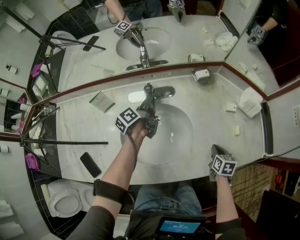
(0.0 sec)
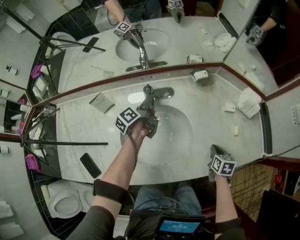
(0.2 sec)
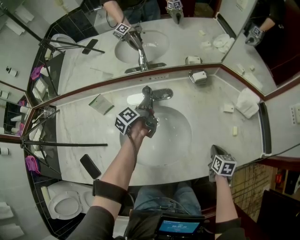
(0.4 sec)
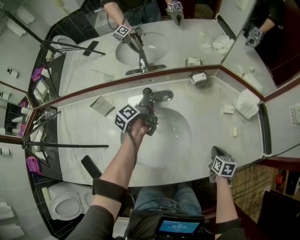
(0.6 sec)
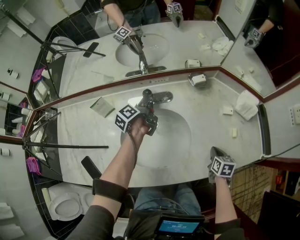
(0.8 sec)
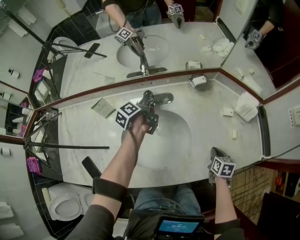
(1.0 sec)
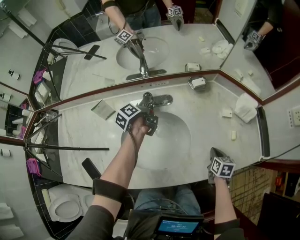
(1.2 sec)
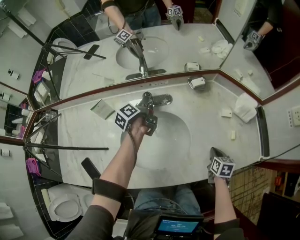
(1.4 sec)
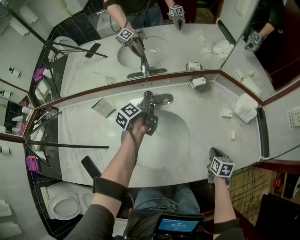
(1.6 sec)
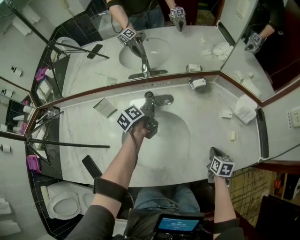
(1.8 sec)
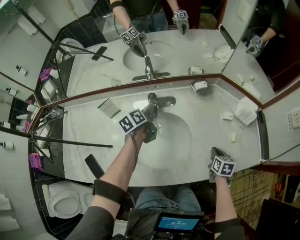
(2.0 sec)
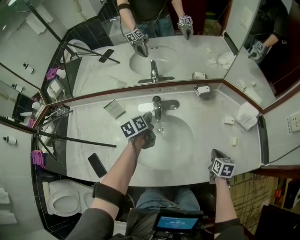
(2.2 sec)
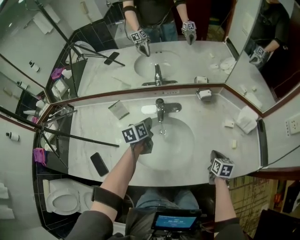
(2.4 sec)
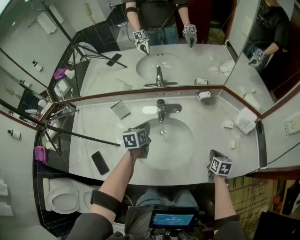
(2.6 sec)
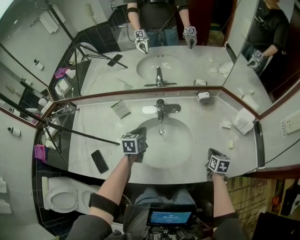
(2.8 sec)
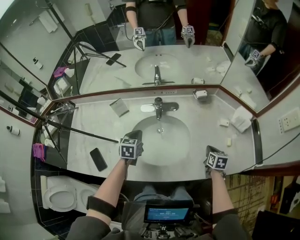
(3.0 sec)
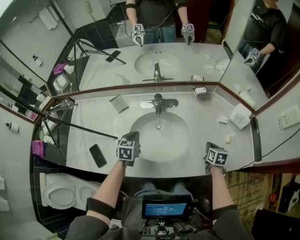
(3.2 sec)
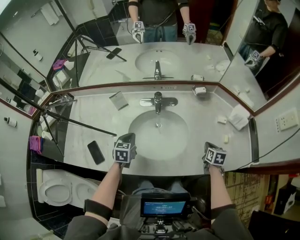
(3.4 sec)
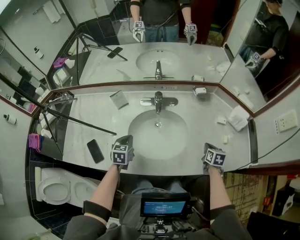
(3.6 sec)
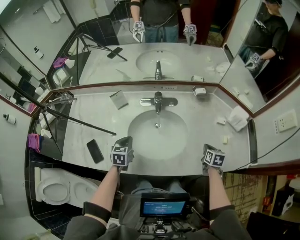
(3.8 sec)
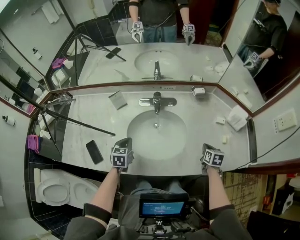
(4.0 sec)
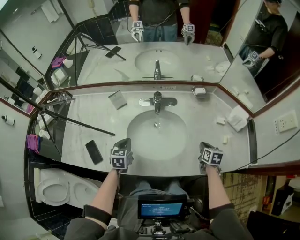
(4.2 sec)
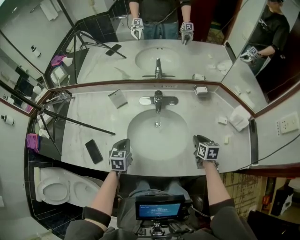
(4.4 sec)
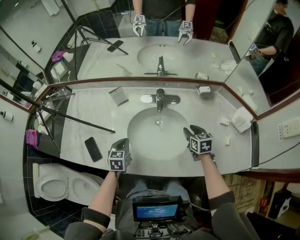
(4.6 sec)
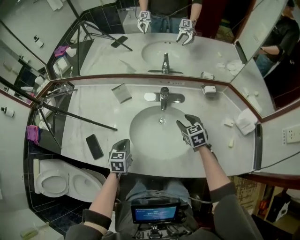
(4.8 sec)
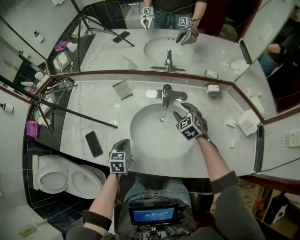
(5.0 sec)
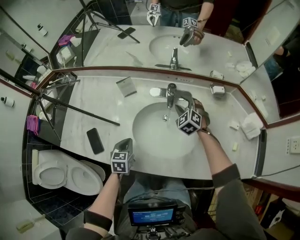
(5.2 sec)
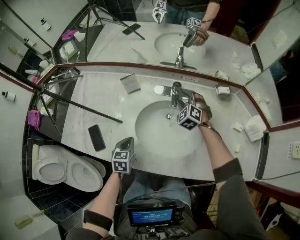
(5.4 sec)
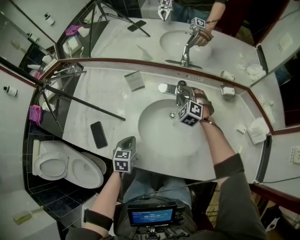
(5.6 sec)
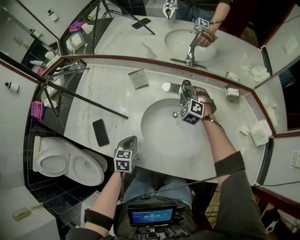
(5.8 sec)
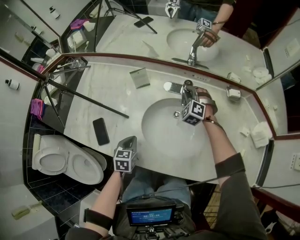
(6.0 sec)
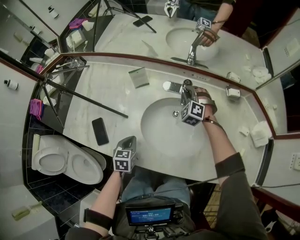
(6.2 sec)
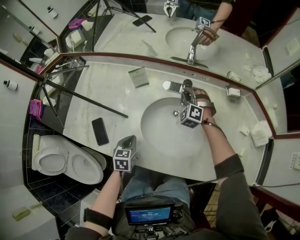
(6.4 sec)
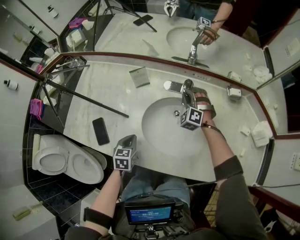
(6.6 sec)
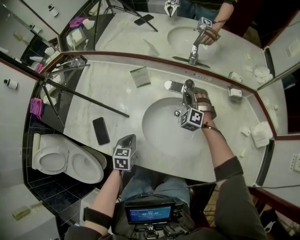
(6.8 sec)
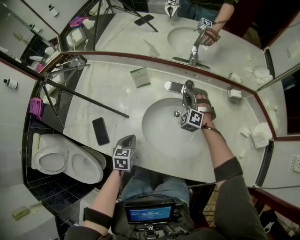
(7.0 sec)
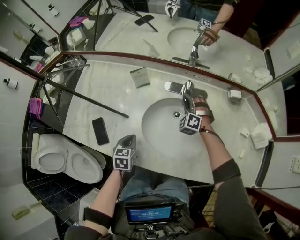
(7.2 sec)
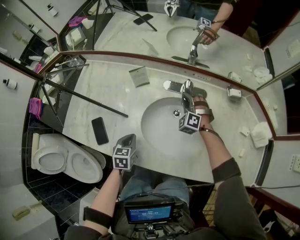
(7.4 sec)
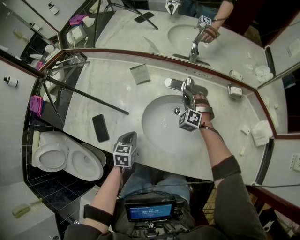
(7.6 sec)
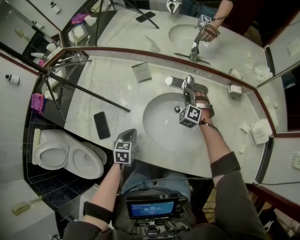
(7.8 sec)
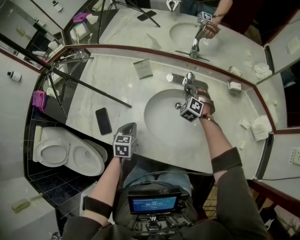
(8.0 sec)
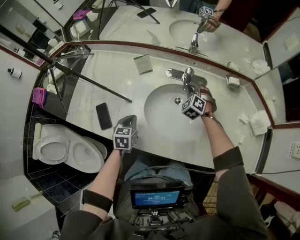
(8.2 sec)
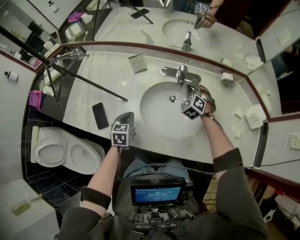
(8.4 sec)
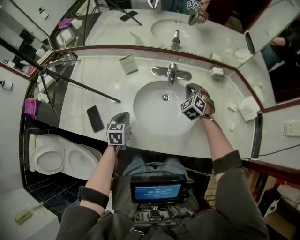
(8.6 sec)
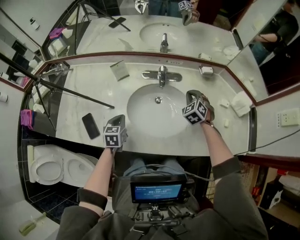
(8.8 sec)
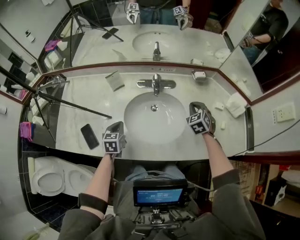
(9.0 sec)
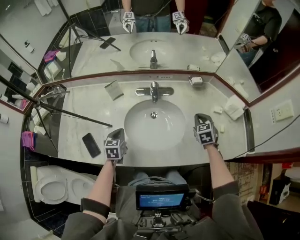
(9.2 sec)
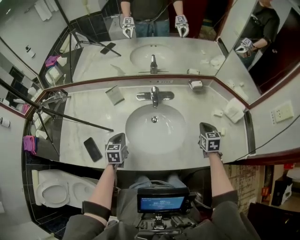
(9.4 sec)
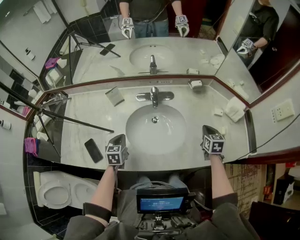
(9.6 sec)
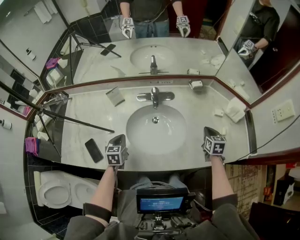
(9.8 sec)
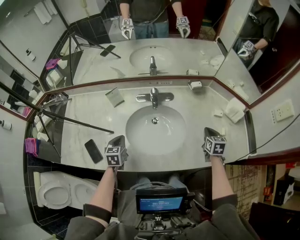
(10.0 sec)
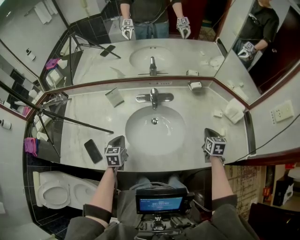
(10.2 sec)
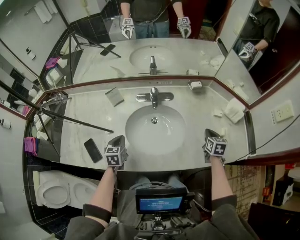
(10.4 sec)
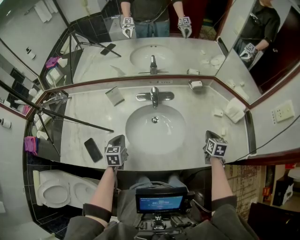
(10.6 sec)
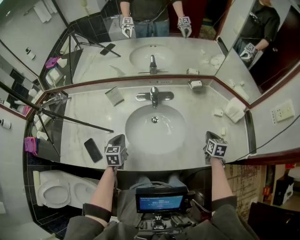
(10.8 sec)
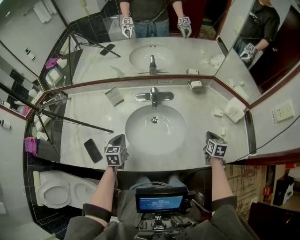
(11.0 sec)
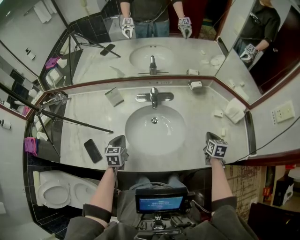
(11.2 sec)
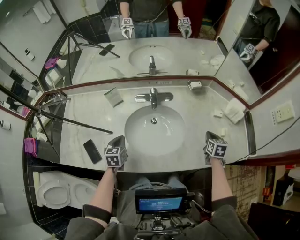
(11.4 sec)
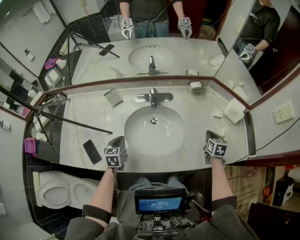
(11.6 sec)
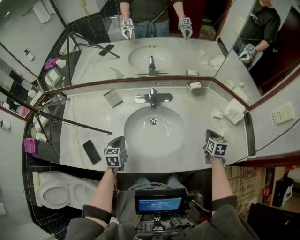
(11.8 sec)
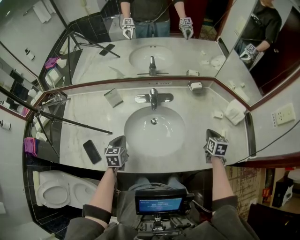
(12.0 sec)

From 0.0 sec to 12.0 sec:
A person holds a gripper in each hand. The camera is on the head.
From 0.0 sec to 1.6 sec: The grippers move only a little.
From 1.6 sec to 3.0 sec: The left gripper moves backward, approximately 20 cm, rolls clockwise, seen from behind, by about 70 degrees, and closes up.
From 3.0 sec to 4.4 sec: The left gripper goes about 10 cm backward and to the left. Meanwhile the right gripper travels to the left by about 5 cm.
From 4.4 sec to 6.0 sec: The right gripper heads forward and to the left, covering about 35 cm, rolls counterclockwise, seen from behind, by roughly 90 degrees, and opens, then closes once more. Meanwhile the left gripper moves downward and to the left, about 5 cm.
From 6.0 sec to 7.6 sec: The grippers stay close to where they were, moving slightly.
From 7.6 sec to 9.0 sec: The right gripper goes some 25 cm to the right and backward, and rolls clockwise, seen from behind, by some 40 degrees; the left gripper is displaced upward by some 5 cm.
From 9.0 sec to 10.4 sec: The right gripper goes approximately 15 cm to the right and backward, and rotates around the line of its fingers by roughly 50 degrees, clockwise from behind.
From 10.4 sec to 12.0 sec: The grippers make only small movements.

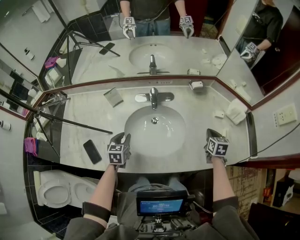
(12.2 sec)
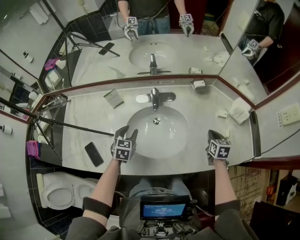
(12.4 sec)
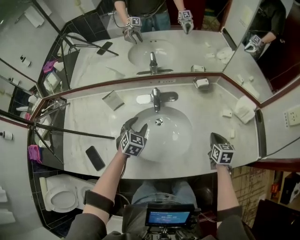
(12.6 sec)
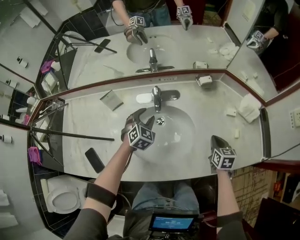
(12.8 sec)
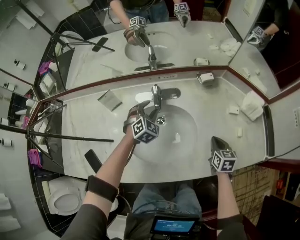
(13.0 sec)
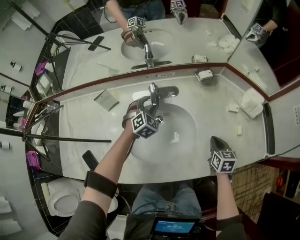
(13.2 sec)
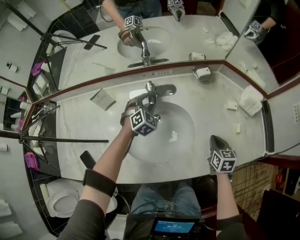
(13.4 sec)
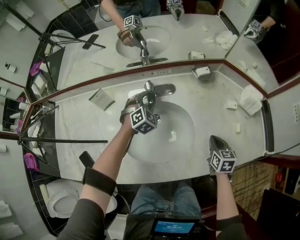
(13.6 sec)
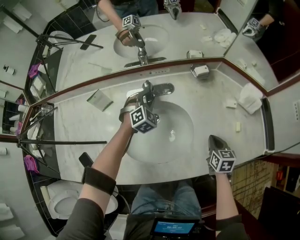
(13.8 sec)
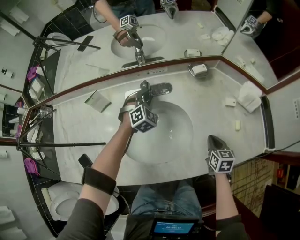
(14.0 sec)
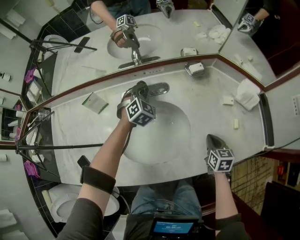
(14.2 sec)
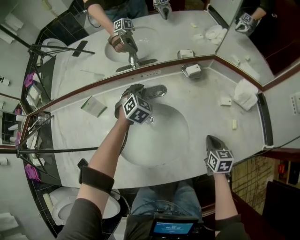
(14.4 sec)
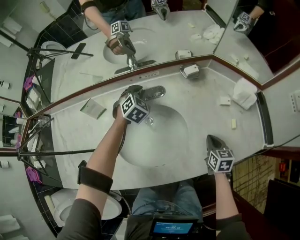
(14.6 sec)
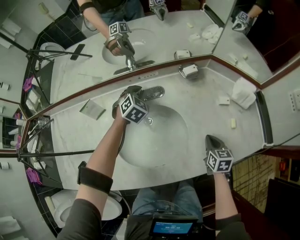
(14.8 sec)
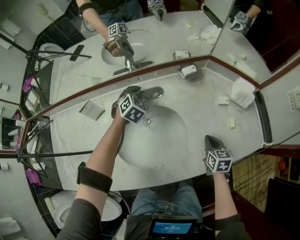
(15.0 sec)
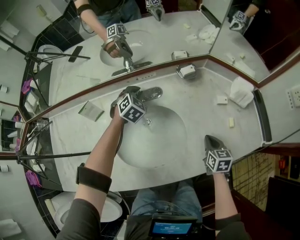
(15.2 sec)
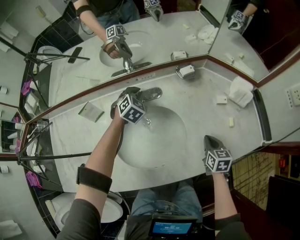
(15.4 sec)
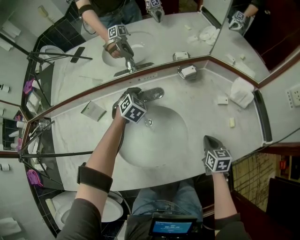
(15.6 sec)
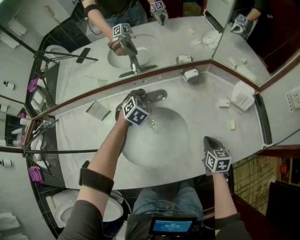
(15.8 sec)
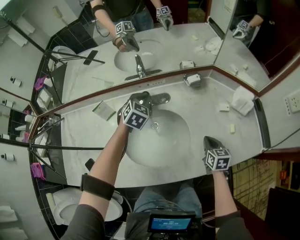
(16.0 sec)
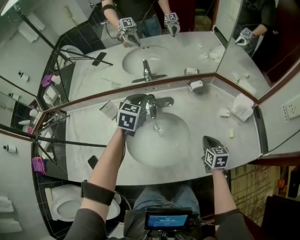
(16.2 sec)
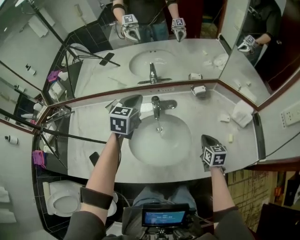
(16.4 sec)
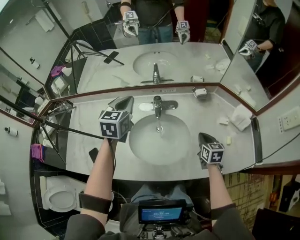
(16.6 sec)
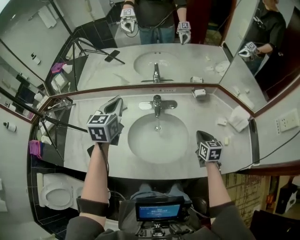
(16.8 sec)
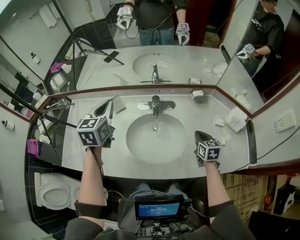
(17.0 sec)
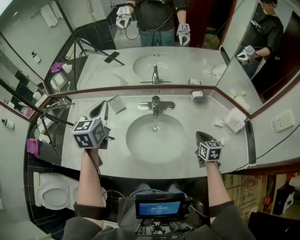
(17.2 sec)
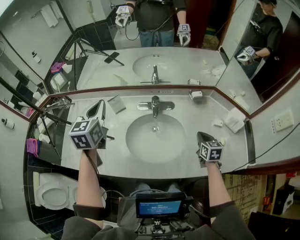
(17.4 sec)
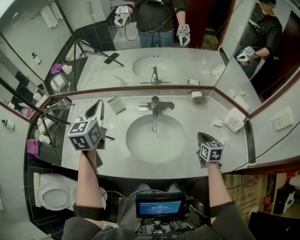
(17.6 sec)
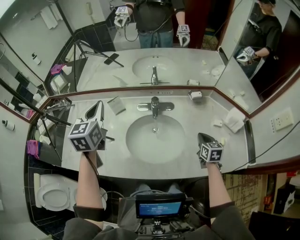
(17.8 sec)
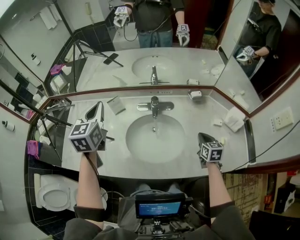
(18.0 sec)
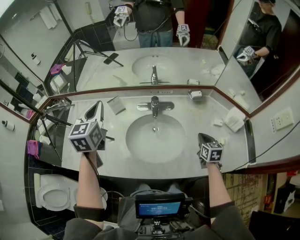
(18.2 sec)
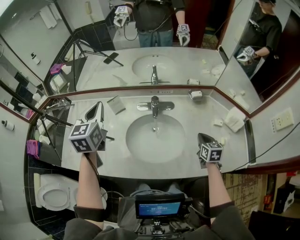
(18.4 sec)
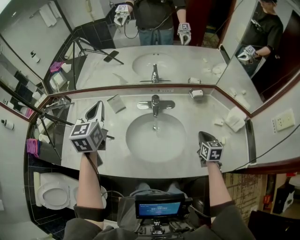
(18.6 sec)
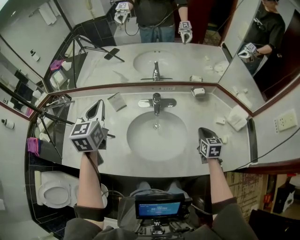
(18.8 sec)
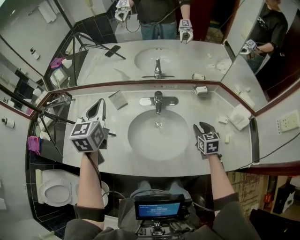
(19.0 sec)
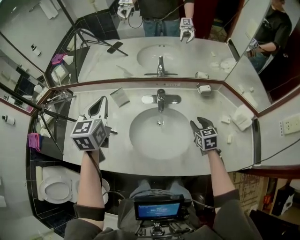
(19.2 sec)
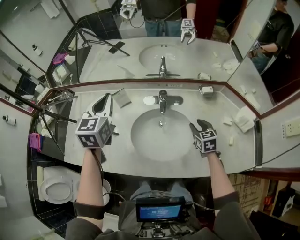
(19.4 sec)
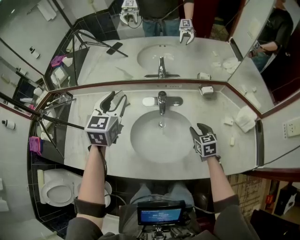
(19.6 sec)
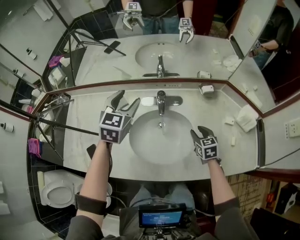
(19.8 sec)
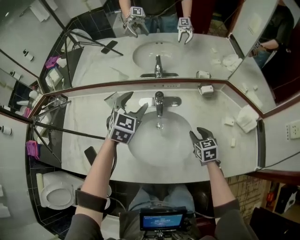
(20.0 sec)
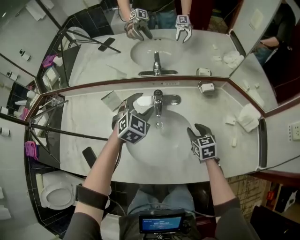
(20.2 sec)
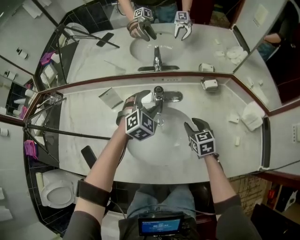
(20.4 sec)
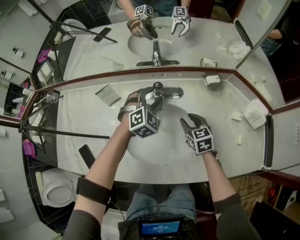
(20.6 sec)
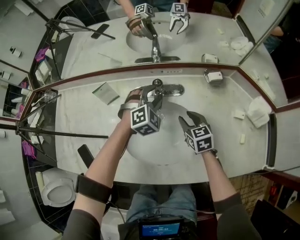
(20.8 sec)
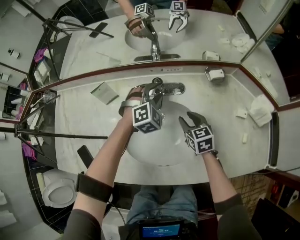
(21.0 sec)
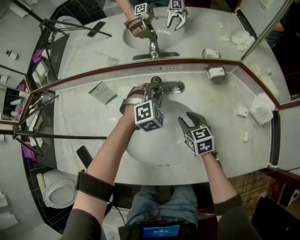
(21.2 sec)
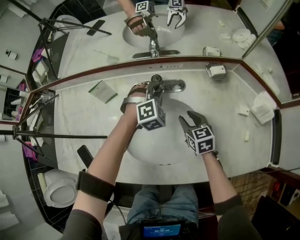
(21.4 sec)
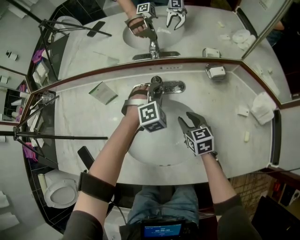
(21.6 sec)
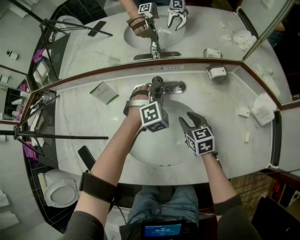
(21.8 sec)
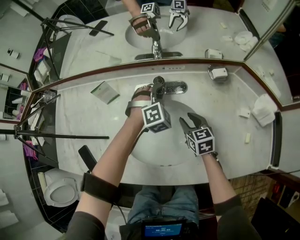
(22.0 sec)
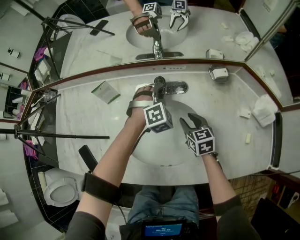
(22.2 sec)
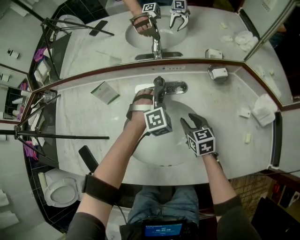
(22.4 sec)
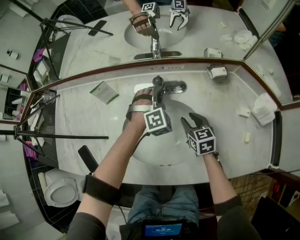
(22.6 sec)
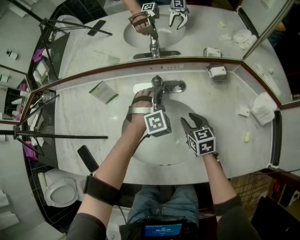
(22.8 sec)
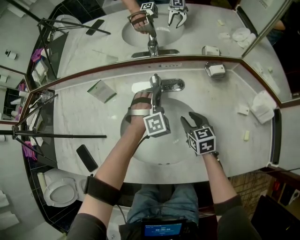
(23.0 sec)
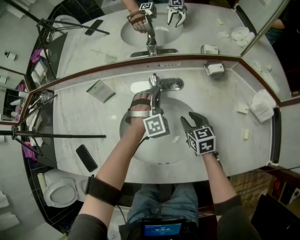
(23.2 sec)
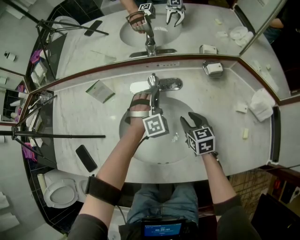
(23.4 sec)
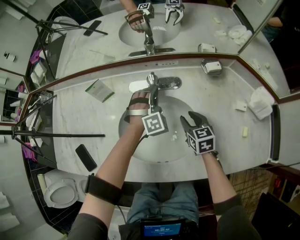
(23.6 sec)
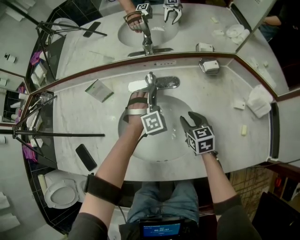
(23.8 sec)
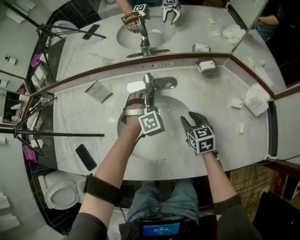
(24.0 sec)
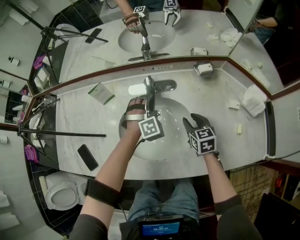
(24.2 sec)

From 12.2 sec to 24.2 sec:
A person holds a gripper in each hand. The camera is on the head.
From 12.2 sec to 13.8 sec: The right gripper moves downward, approximately 5 cm; the left gripper shifts approximately 30 cm forward and to the right, and twists some 60 degrees clockwise, seen from behind.
From 13.8 sec to 15.2 sec: The left gripper shifts by approximately 5 cm, and closes up.
From 15.2 sec to 16.6 sec: The left gripper travels upward, backward and to the left by about 30 cm, and twists some 40 degrees counterclockwise, seen from behind, while the right gripper shifts roughly 10 cm upward and to the left.
From 16.6 sec to 18.2 sec: The left gripper moves to the left, upward and backward, approximately 15 cm.
From 18.2 sec to 19.8 sec: The left gripper moves to the right, downward and forward, some 15 cm, changes its angle by some 20 degrees, and opens up, while the right gripper shifts approximately 10 cm to the left, forward and downward, and opens.
From 19.8 sec to 21.2 sec: The right gripper shifts some 10 cm downward, to the left and forward, while the left gripper travels downward and to the right by approximately 30 cm, twists about 50 degrees clockwise, seen from behind, and closes up.
From 21.2 sec to 22.6 sec: The grippers move only a little.
From 22.6 sec to 24.2 sec: The left gripper changes place by about 5 cm. Meanwhile the right gripper ends up approximately 5 cm from where it was.
